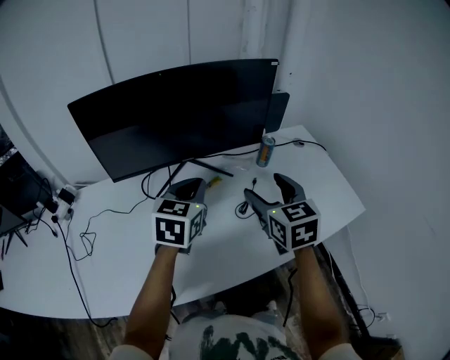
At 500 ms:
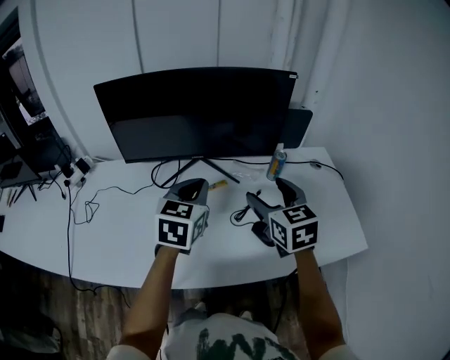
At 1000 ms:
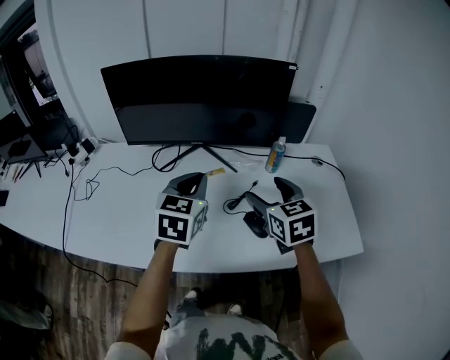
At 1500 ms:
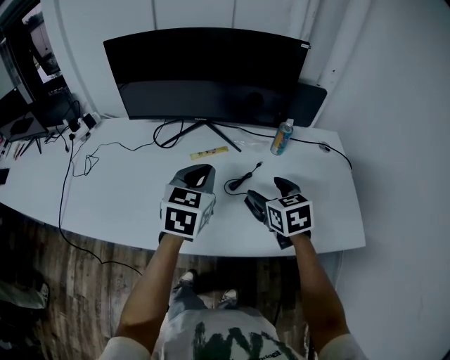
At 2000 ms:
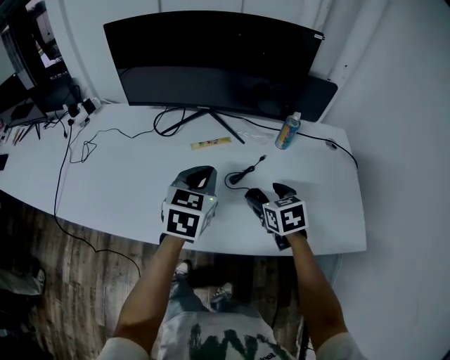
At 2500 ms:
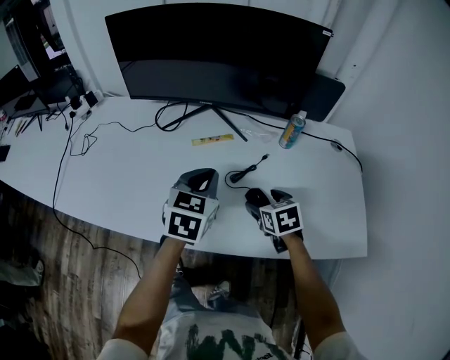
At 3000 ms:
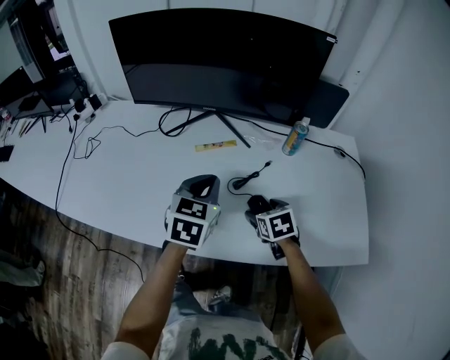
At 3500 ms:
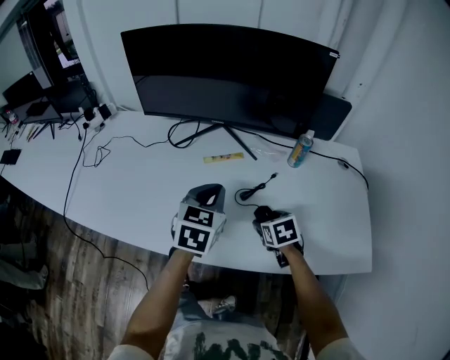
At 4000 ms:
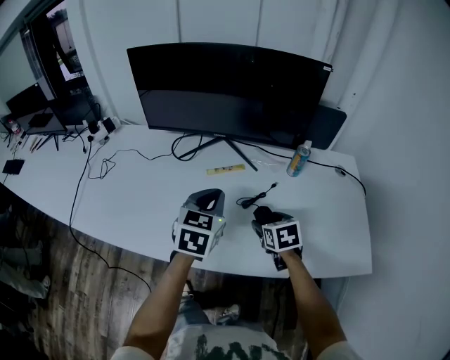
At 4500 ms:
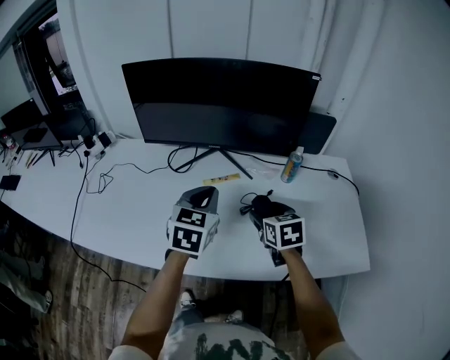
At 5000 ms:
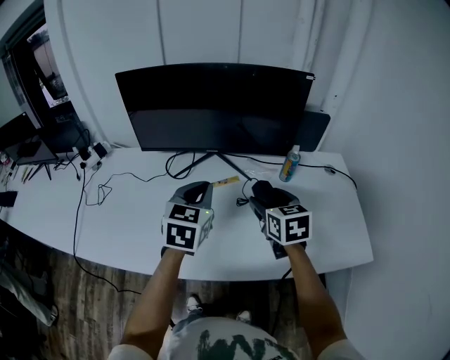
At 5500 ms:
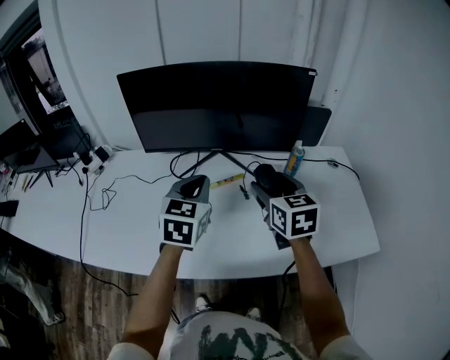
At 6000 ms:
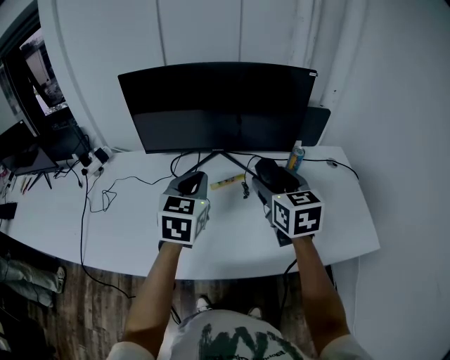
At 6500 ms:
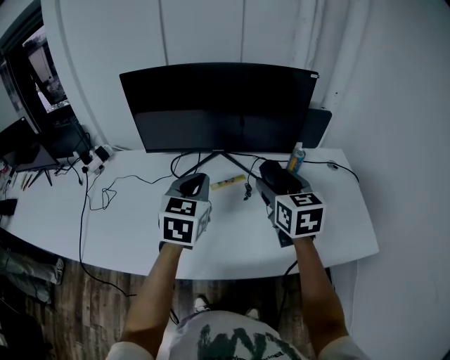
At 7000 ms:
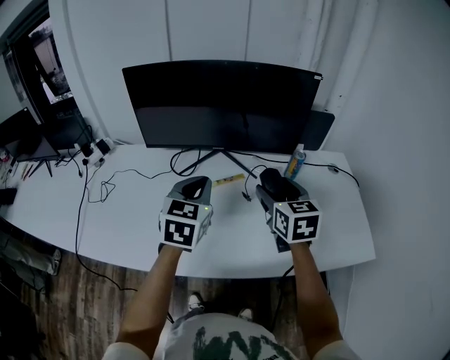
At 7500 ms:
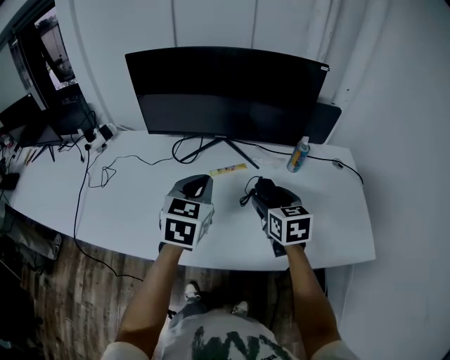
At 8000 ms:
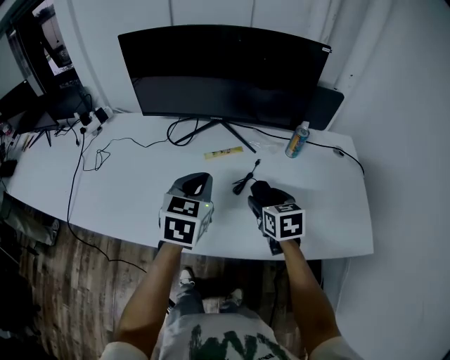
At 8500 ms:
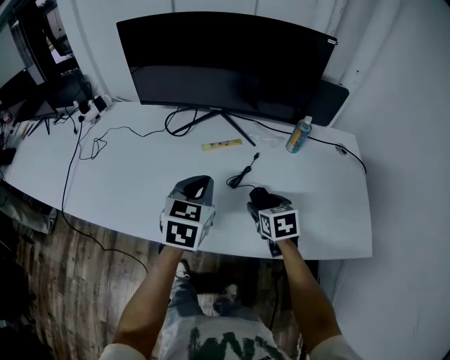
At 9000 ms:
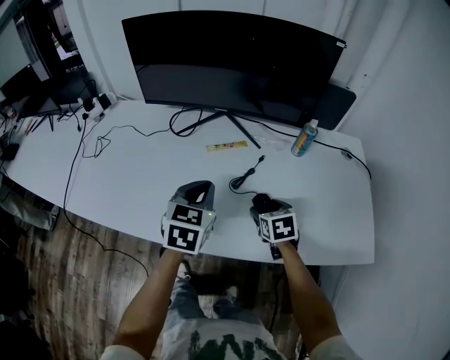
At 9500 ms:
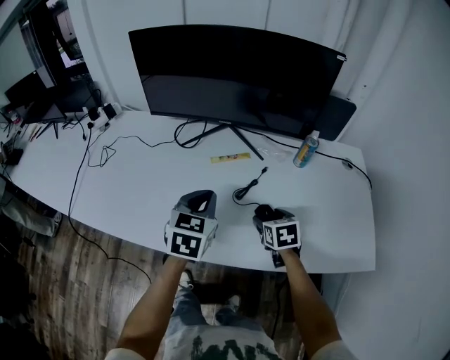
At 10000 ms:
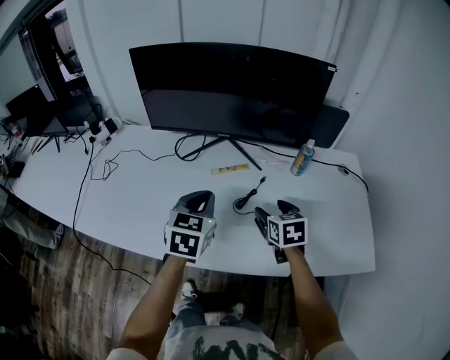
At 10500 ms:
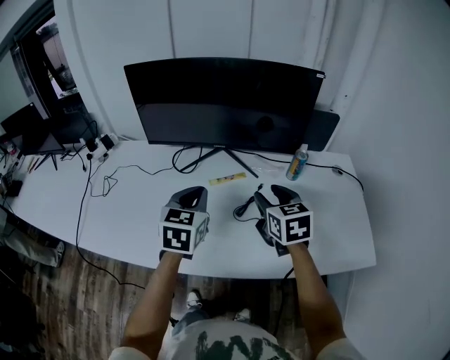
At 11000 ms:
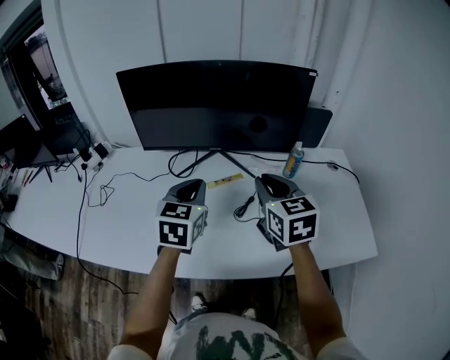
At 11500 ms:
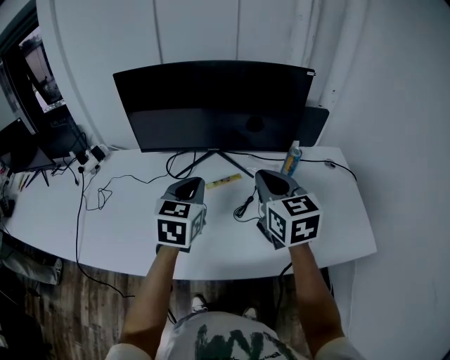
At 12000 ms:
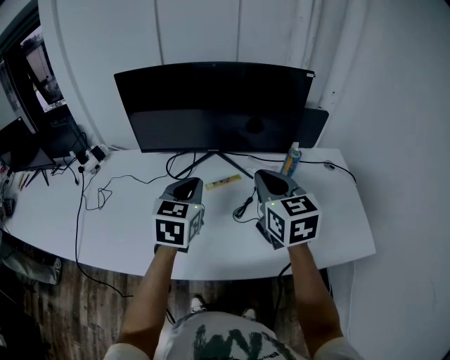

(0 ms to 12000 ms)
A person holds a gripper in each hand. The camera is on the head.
0 ms - 2000 ms: The right gripper travels downward and to the right by approximately 20 cm, and swivels some 30 degrees. Meanwhile the left gripper heads downward, to the right and backward, covering approximately 15 cm, and turns by about 20 degrees.
4000 ms - 6000 ms: The right gripper shifts some 25 cm upward, and turns by roughly 30 degrees. The left gripper travels upward and to the left by some 10 cm.
6000 ms - 8000 ms: The right gripper heads downward, covering about 20 cm; the left gripper travels downward, to the right and backward by roughly 10 cm.
8000 ms - 10000 ms: The right gripper reaches roughly 10 cm downward, then returns.
10000 ms - 12000 ms: The right gripper moves upward, some 20 cm, turns by approximately 20 degrees, and closes its fingers. The left gripper travels upward by approximately 5 cm.

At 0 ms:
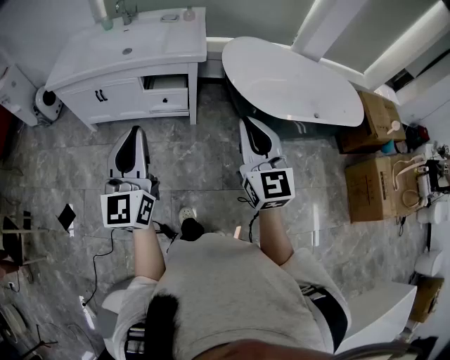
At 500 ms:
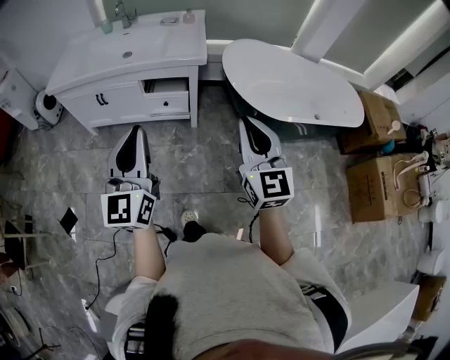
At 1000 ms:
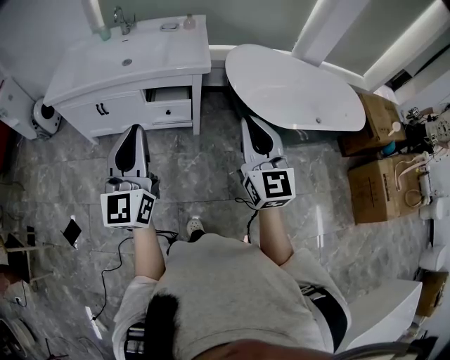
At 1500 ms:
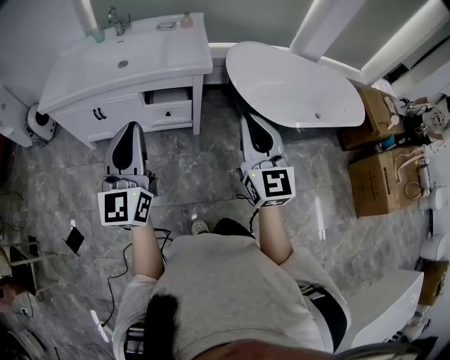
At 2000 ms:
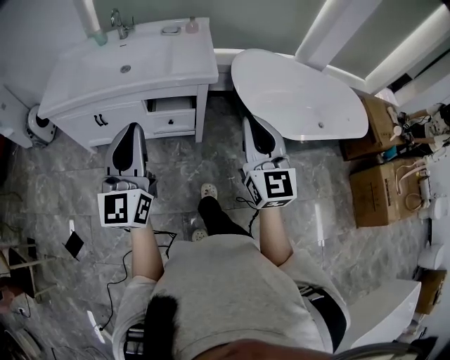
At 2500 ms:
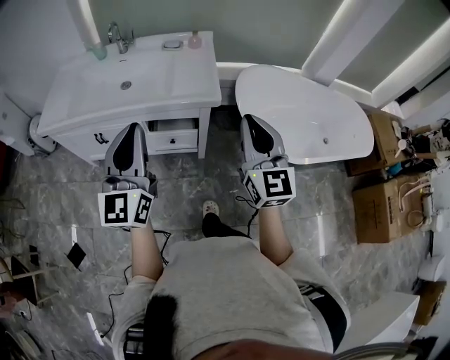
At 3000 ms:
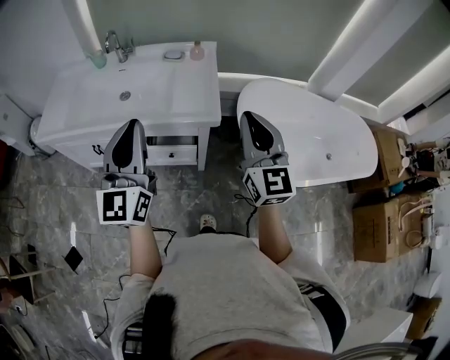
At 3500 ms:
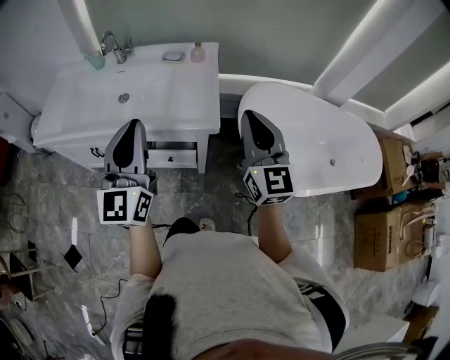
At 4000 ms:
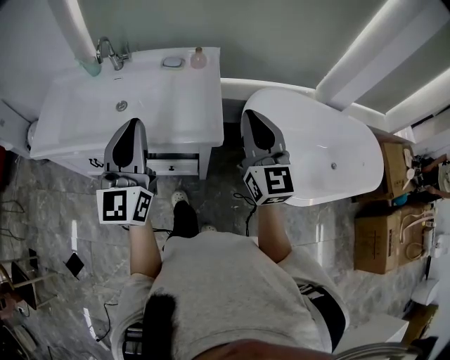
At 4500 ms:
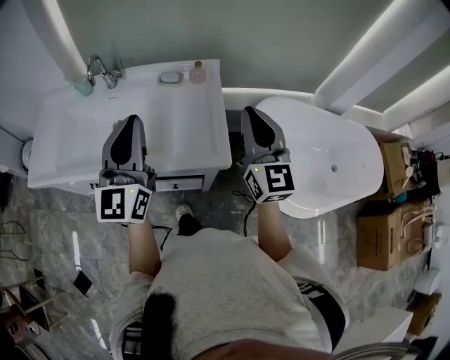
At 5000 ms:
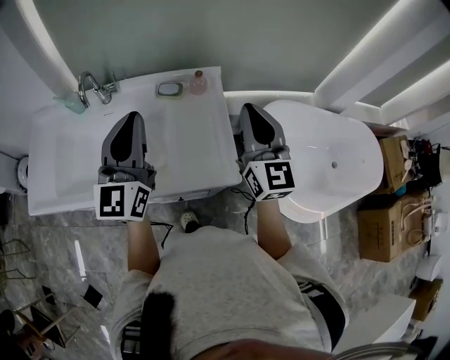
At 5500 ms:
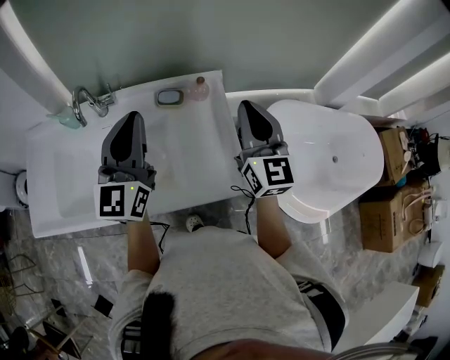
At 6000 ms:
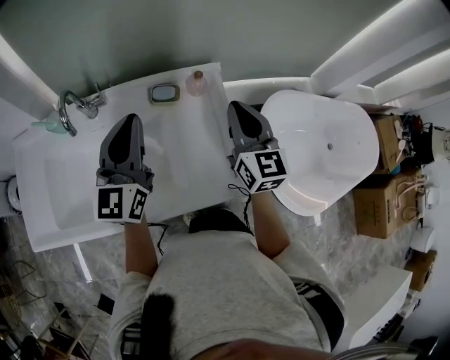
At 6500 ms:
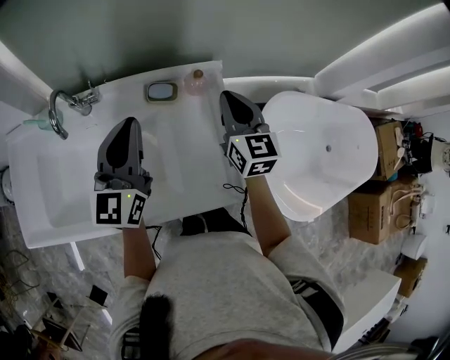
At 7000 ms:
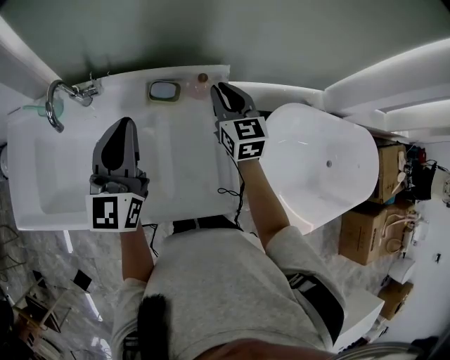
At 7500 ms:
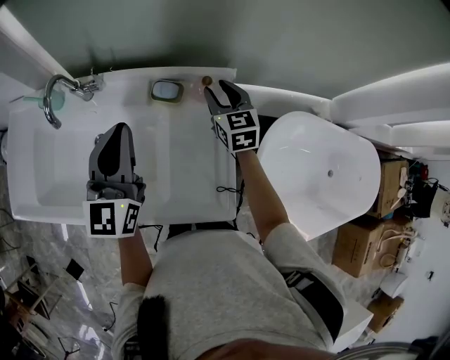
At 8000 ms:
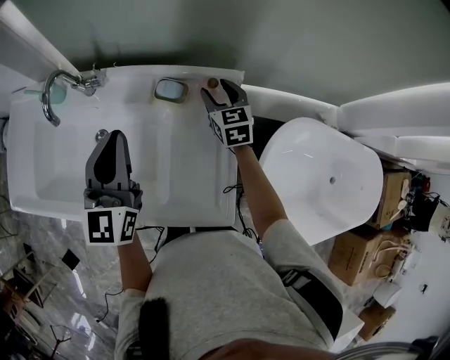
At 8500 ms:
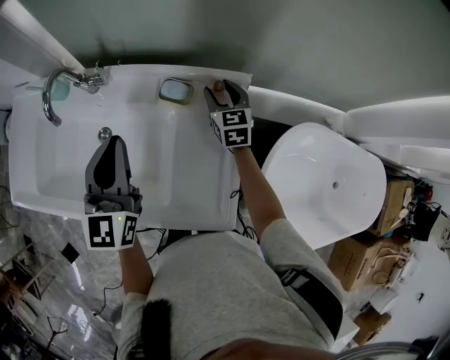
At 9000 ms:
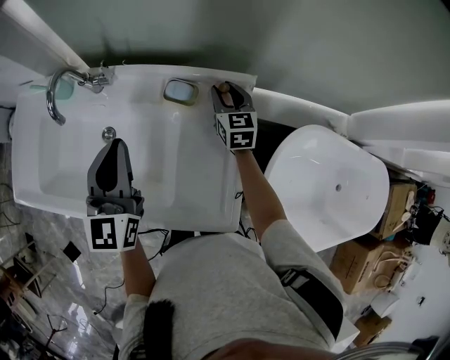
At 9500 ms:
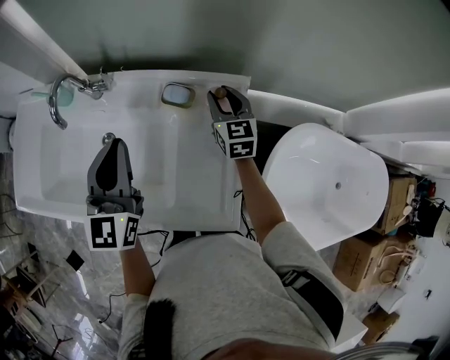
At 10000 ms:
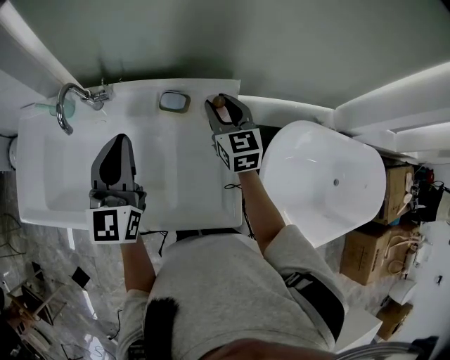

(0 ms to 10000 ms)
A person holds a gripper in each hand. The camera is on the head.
0 ms - 2000 ms: The grippers both shift forward and to the left by some 15 cm.
2000 ms - 4000 ms: The grippers both shift forward by roughly 35 cm.
4000 ms - 6000 ms: The right gripper is displaced forward and to the left by about 30 cm. Meanwhile the left gripper moves forward, some 30 cm.
6000 ms - 8000 ms: The right gripper heads forward and downward, covering about 30 cm, turns by some 30 degrees, and opens, while the left gripper moves some 5 cm, and turns by about 20 degrees.
8000 ms - 10000 ms: The right gripper is displaced upward and backward by roughly 10 cm.

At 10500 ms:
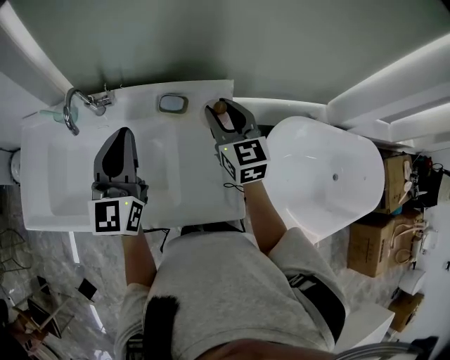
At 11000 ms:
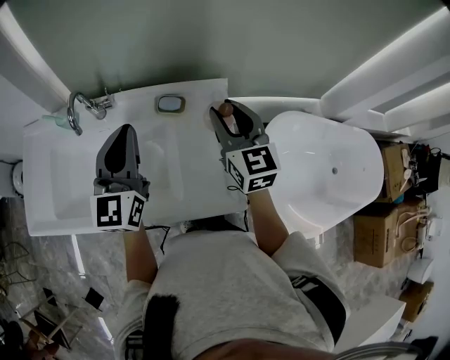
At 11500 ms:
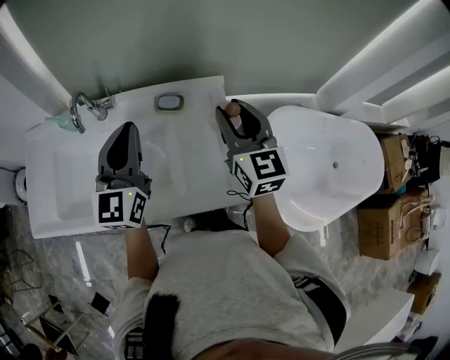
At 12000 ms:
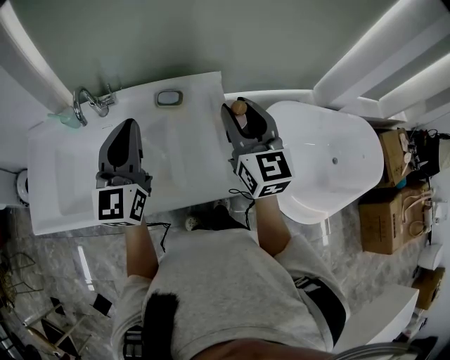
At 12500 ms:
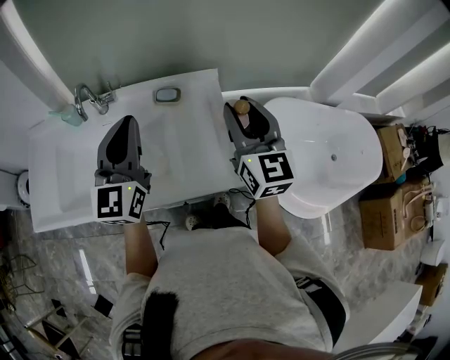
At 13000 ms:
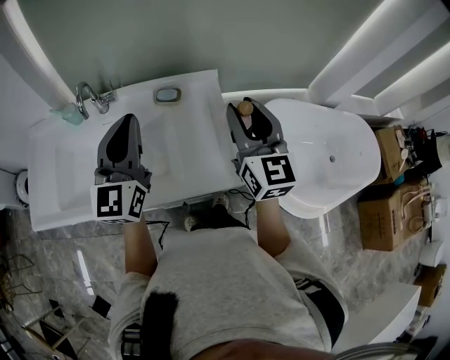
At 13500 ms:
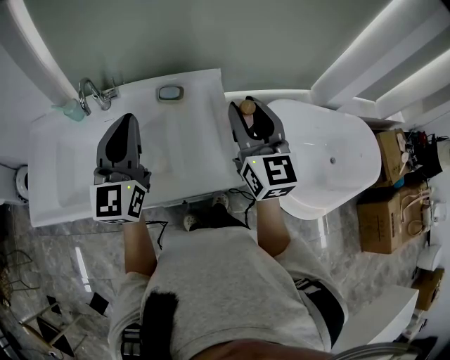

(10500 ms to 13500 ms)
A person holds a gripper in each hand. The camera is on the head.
10500 ms - 12000 ms: The right gripper shifts some 15 cm backward and upward; the left gripper is displaced backward by some 5 cm.
12000 ms - 13500 ms: The grippers move only a little.

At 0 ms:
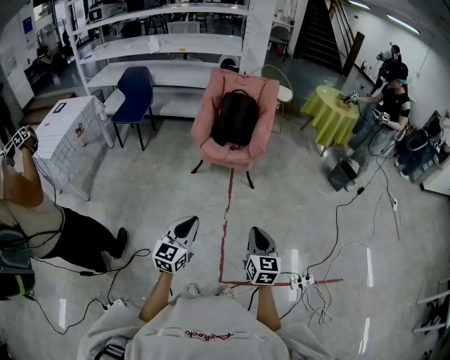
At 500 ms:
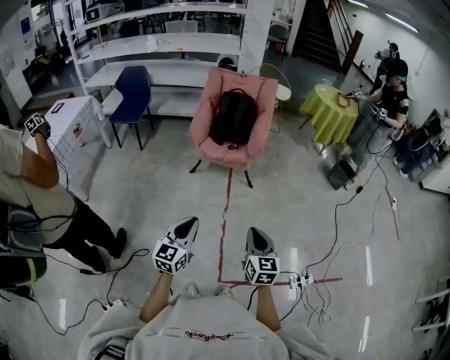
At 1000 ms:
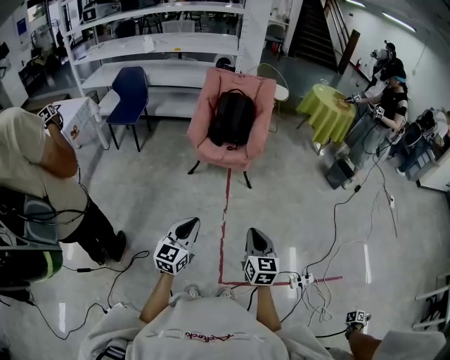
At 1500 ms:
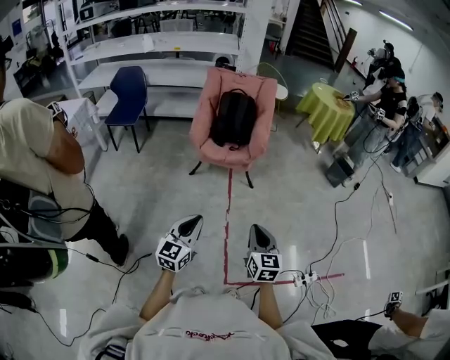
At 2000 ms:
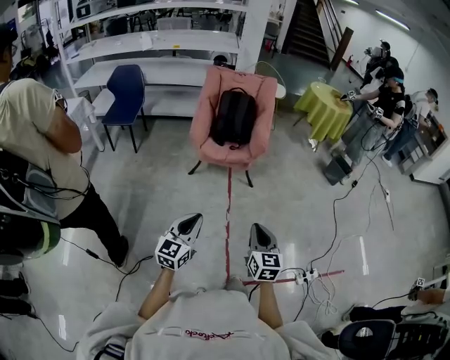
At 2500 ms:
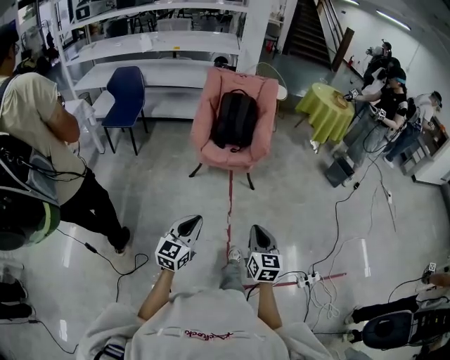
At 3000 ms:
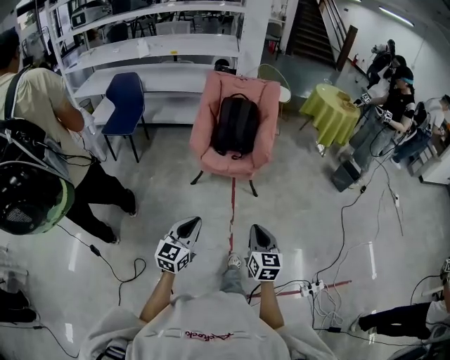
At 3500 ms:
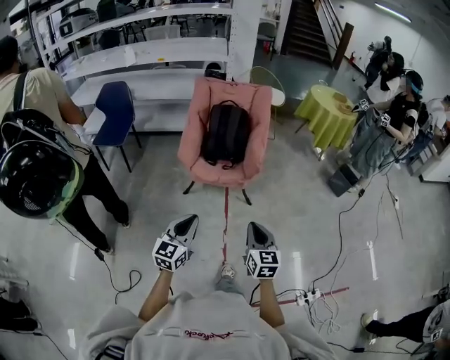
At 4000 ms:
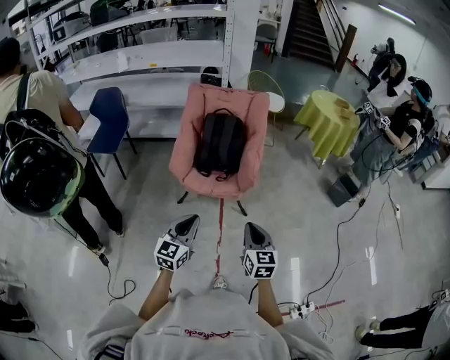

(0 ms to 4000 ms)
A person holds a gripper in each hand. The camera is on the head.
0 ms - 2000 ms: The two grippers go some 10 cm to the left.
2000 ms - 4000 ms: Both grippers move forward, approximately 35 cm.
